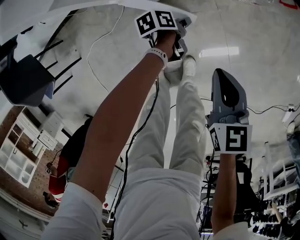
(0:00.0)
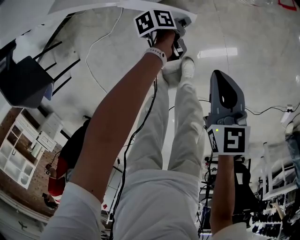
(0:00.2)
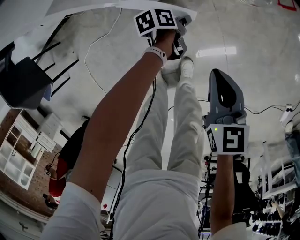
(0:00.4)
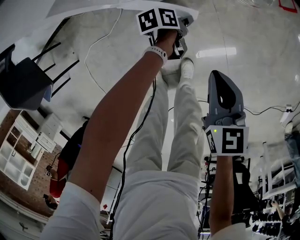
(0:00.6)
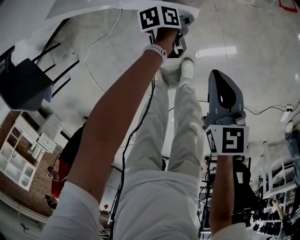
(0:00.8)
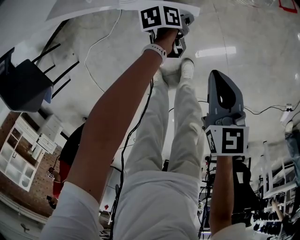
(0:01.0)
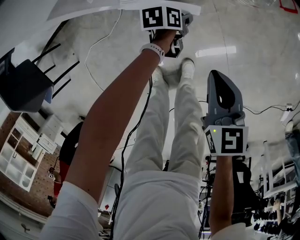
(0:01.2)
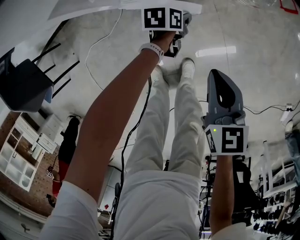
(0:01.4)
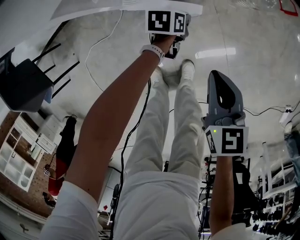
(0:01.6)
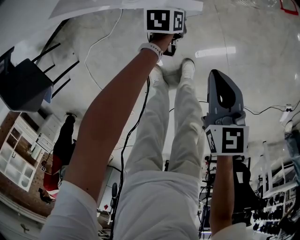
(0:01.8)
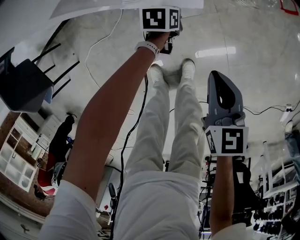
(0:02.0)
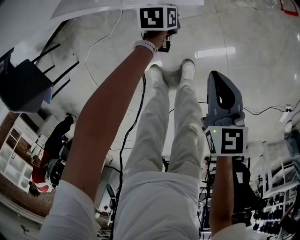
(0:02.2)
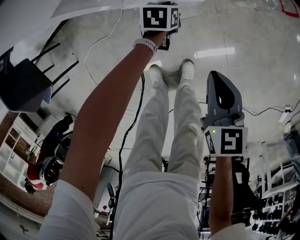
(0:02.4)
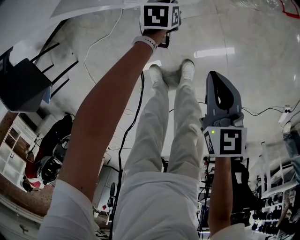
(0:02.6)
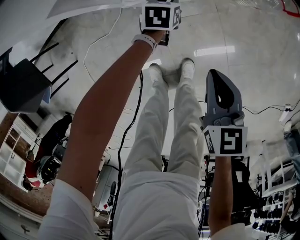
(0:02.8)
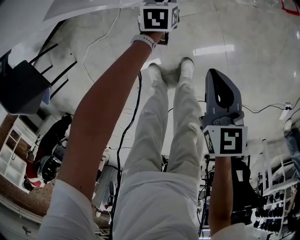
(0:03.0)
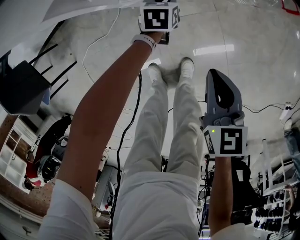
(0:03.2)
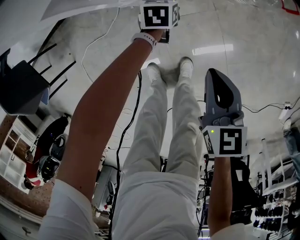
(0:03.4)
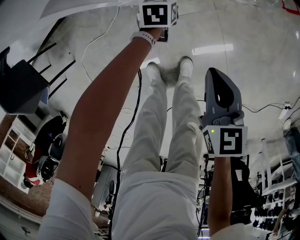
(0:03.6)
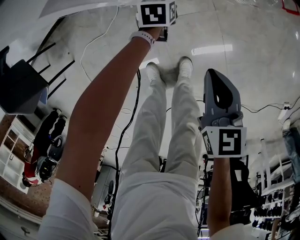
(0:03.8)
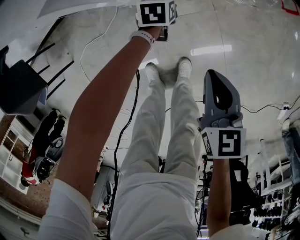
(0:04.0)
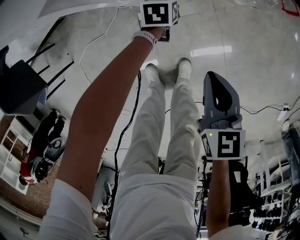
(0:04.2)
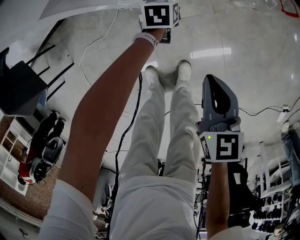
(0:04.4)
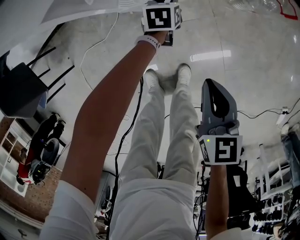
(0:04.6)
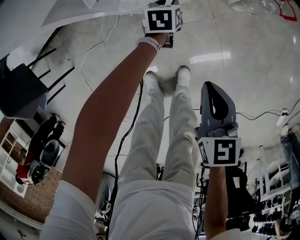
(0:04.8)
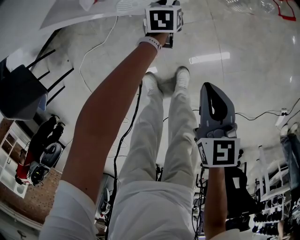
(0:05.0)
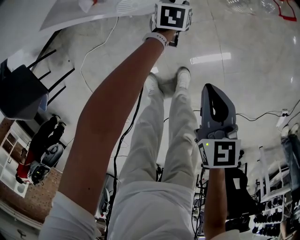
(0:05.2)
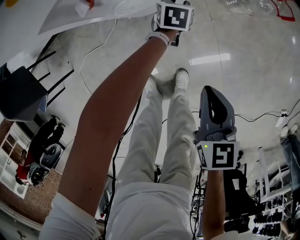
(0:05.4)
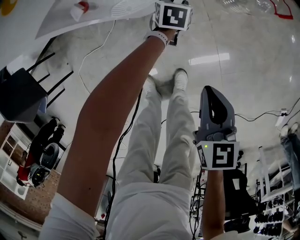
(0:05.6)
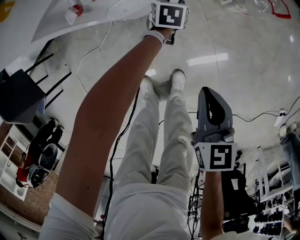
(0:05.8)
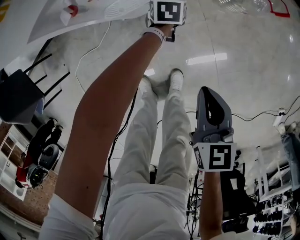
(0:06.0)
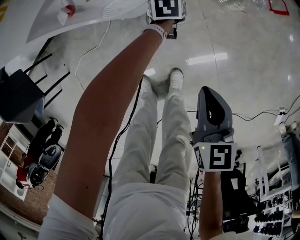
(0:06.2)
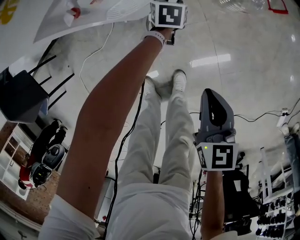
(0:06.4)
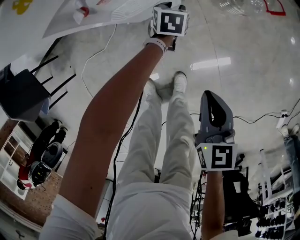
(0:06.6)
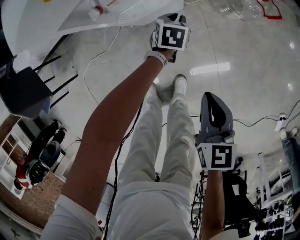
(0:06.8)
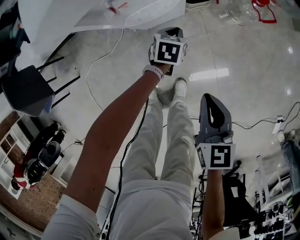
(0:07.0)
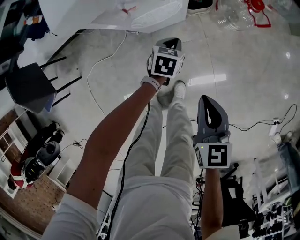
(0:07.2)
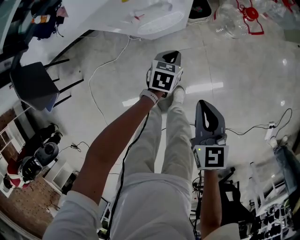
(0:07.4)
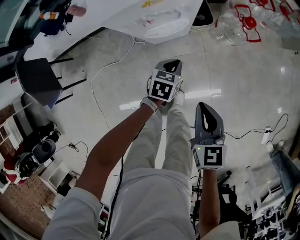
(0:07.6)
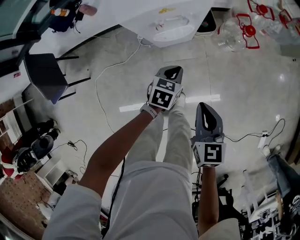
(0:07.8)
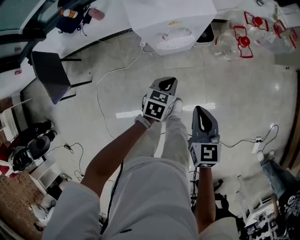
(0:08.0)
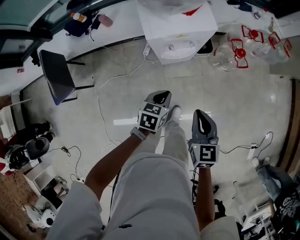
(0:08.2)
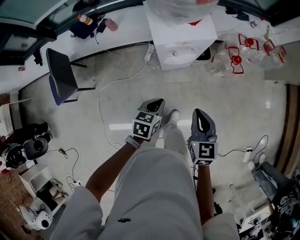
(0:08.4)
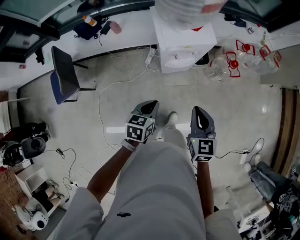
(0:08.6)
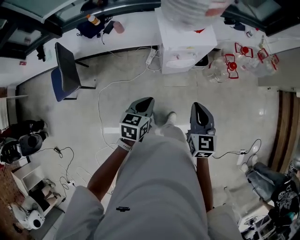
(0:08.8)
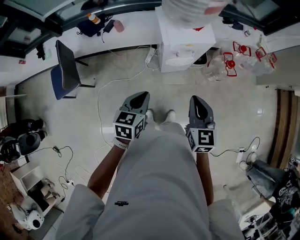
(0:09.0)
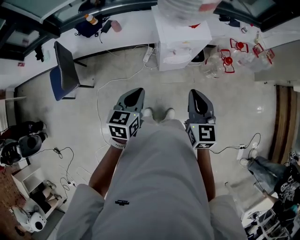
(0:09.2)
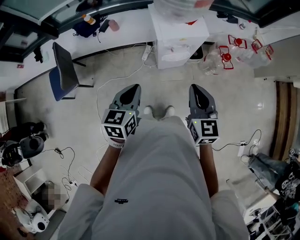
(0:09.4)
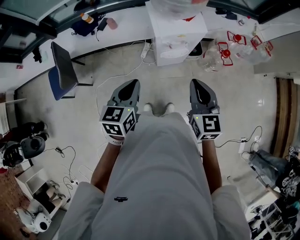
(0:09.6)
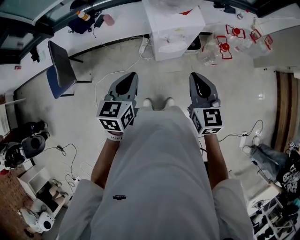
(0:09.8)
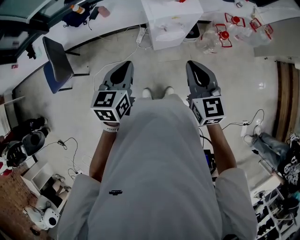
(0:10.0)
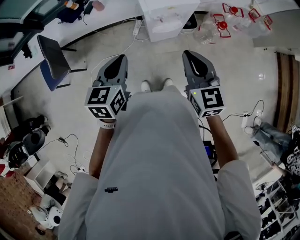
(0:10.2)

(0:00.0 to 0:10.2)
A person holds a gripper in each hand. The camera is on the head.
0:00.0 - 0:01.4: The left gripper changes place by roughly 5 cm, and turns by about 30 degrees.
0:01.4 - 0:03.0: The left gripper moves to the left and forward, roughly 10 cm, and rotates roughly 30 degrees.
0:03.0 - 0:04.4: The grippers stay close to where they were, moving slightly.
0:04.4 - 0:05.8: The left gripper heads to the right, covering roughly 5 cm.
0:05.8 - 0:07.2: The left gripper goes about 15 cm upward and backward, and closes up, while the right gripper is displaced upward by approximately 10 cm.
0:07.2 - 0:08.8: The left gripper moves upward, backward and to the left, roughly 50 cm, and changes its angle by approximately 20 degrees; the right gripper goes approximately 30 cm upward and to the left.
0:08.8 - 0:10.2: Both grippers move upward, some 10 cm.

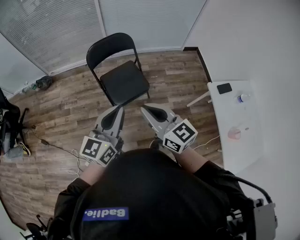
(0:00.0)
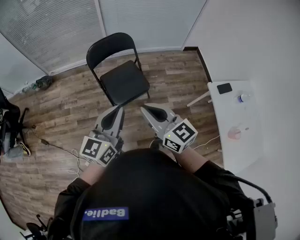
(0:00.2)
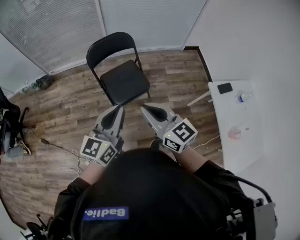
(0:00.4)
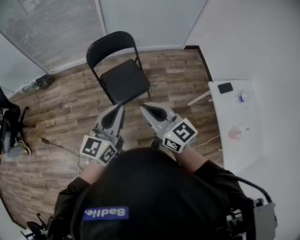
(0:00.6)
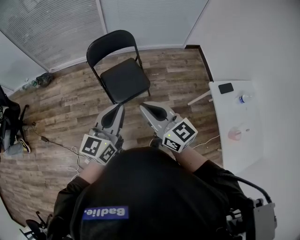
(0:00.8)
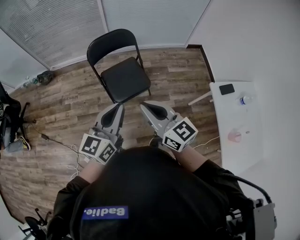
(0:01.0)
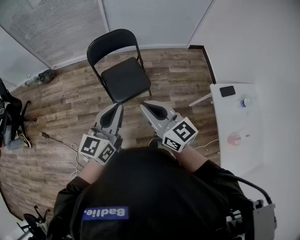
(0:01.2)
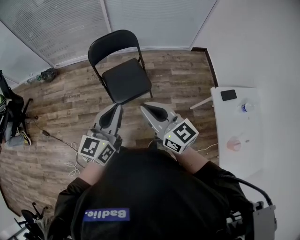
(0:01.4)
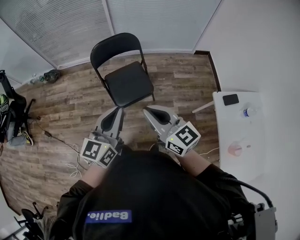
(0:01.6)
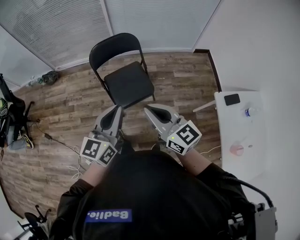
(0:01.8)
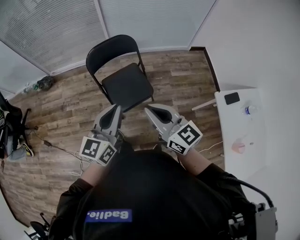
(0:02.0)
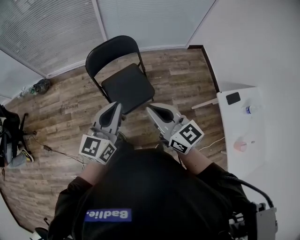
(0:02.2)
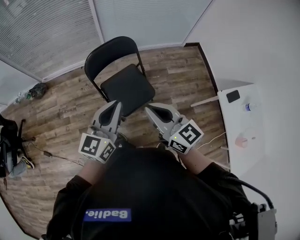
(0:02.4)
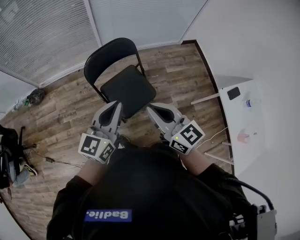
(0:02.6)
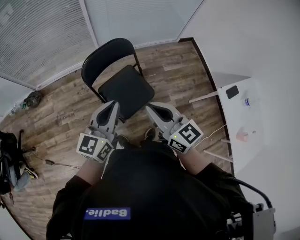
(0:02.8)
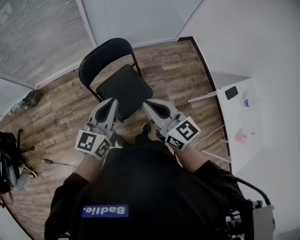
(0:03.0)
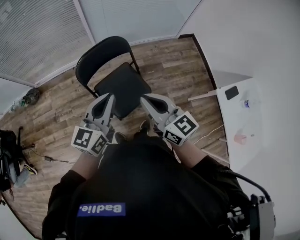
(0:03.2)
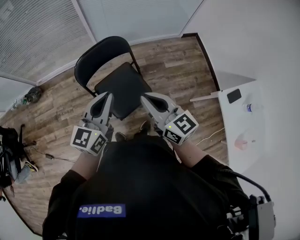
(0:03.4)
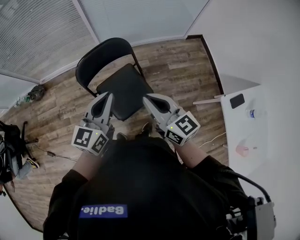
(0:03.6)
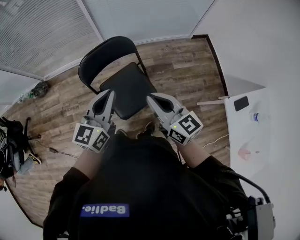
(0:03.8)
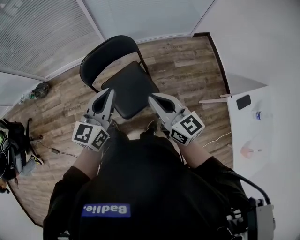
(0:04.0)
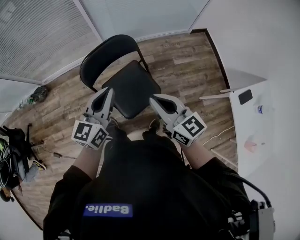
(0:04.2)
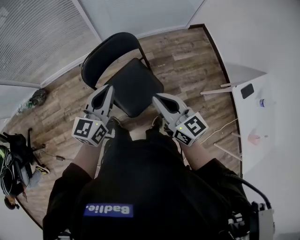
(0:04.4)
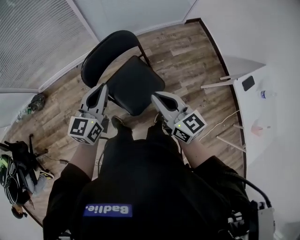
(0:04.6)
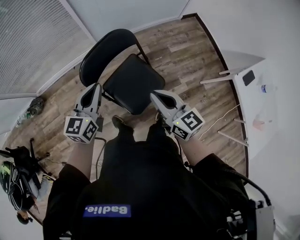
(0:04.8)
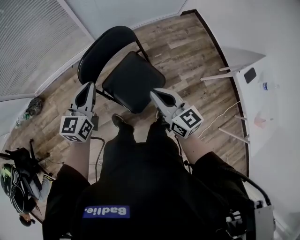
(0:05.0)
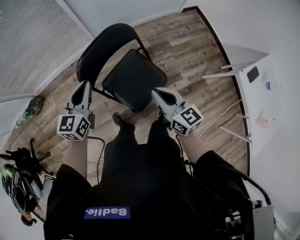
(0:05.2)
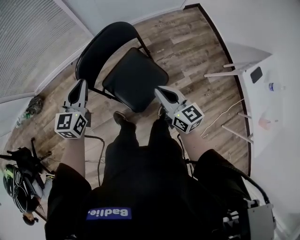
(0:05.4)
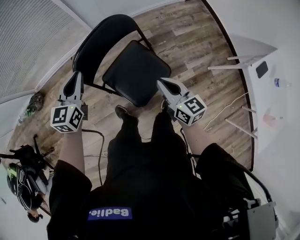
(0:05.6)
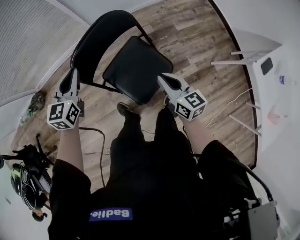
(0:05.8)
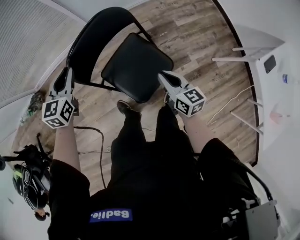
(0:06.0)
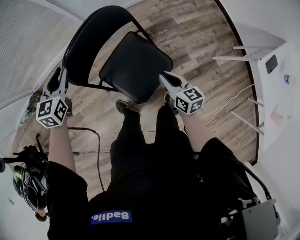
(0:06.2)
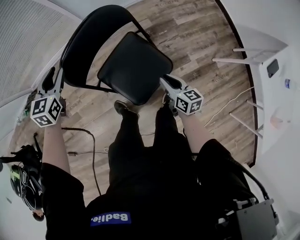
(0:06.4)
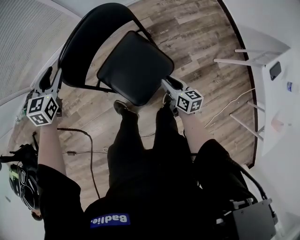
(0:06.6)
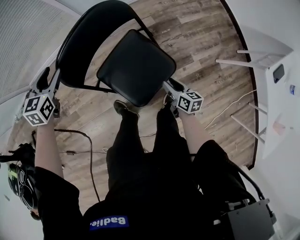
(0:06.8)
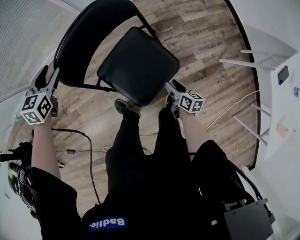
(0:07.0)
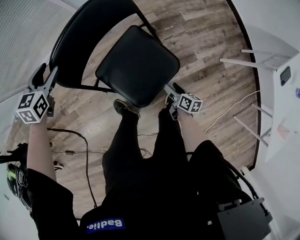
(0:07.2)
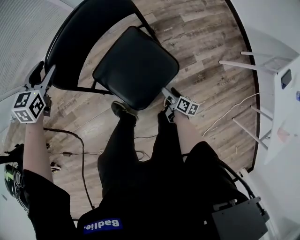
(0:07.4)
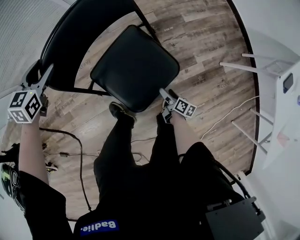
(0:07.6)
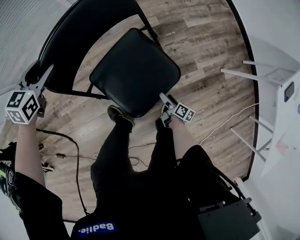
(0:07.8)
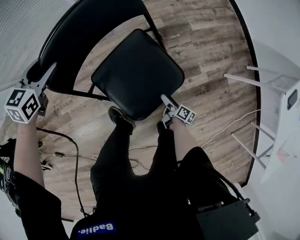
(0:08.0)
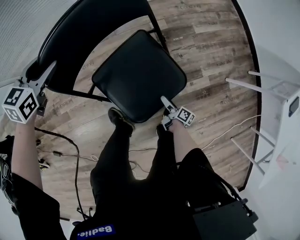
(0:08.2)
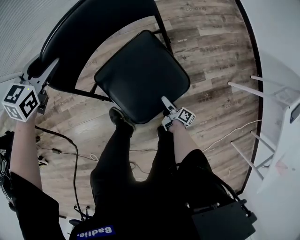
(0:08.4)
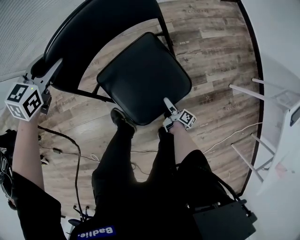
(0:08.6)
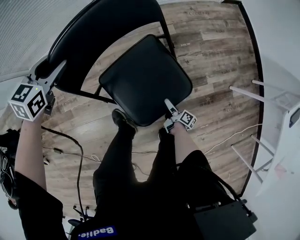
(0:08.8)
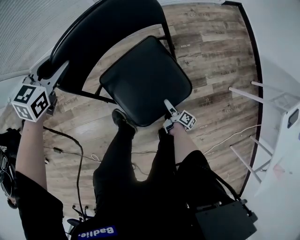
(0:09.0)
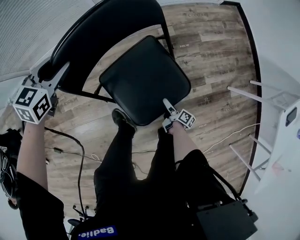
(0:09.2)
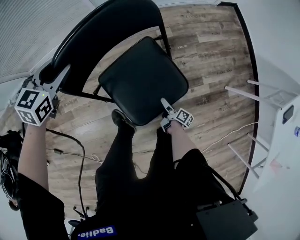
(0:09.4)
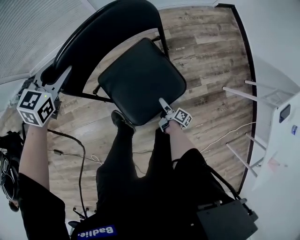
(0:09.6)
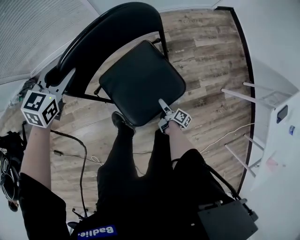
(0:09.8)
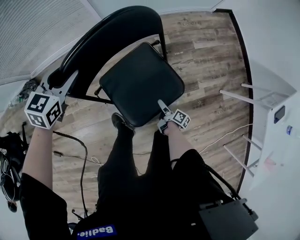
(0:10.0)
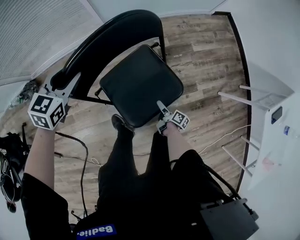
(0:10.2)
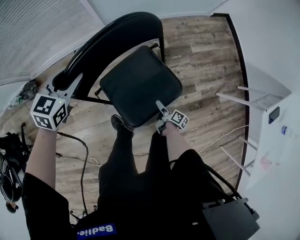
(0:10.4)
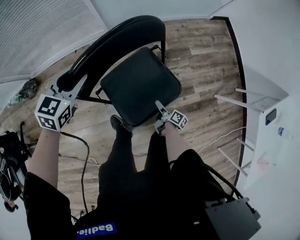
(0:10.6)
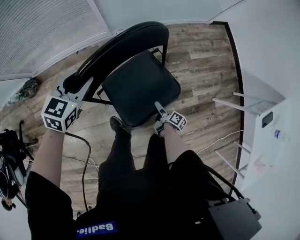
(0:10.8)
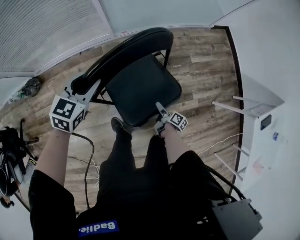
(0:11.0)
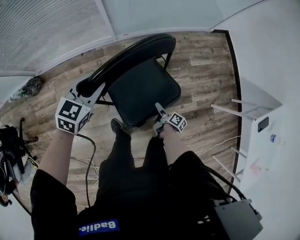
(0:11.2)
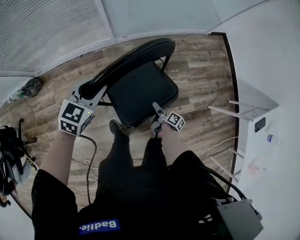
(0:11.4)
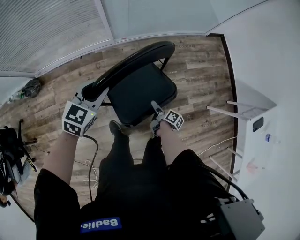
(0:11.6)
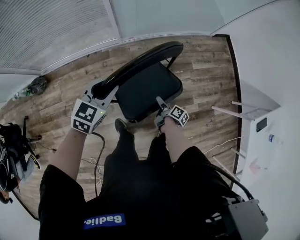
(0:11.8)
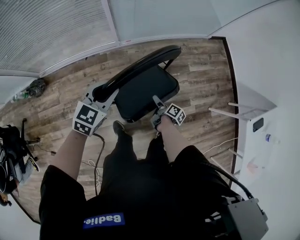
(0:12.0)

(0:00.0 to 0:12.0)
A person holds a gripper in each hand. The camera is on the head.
0:00.0 - 0:01.6: The right gripper goes roughly 5 cm to the right. Meanwhile the left gripper shifts by roughly 5 cm.
0:01.6 - 0:03.0: The two grippers go roughly 25 cm forward and to the left.
0:03.0 - 0:04.4: The grippers both shift forward and downward by approximately 10 cm. The right gripper goes to the right and returns, about 10 cm each way.
0:04.4 - 0:06.0: The right gripper is displaced downward by some 25 cm, and swivels roughly 20 degrees. Meanwhile the left gripper travels downward, forward and to the left by approximately 30 cm, and swivels some 20 degrees.
0:06.0 - 0:07.6: The left gripper moves downward and forward, some 15 cm, and opens up; the right gripper moves downward, roughly 35 cm, rolls clockwise, seen from behind, by some 40 degrees, and opens.
0:07.6 - 0:09.0: The right gripper travels downward by about 5 cm.
0:09.0 - 0:10.4: The two grippers go roughly 10 cm upward.
0:10.4 - 0:12.0: The right gripper moves upward, forward and to the left, some 20 cm. The left gripper shifts roughly 10 cm upward and backward.

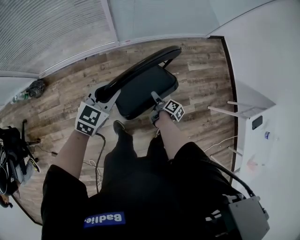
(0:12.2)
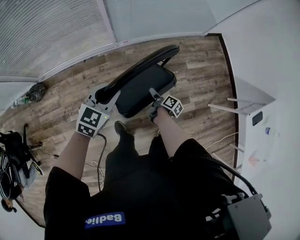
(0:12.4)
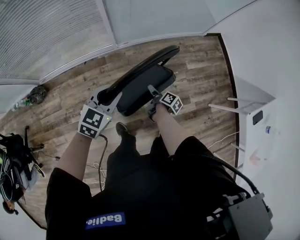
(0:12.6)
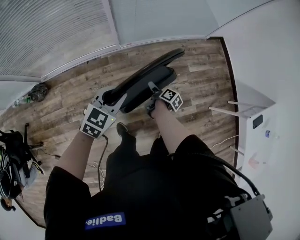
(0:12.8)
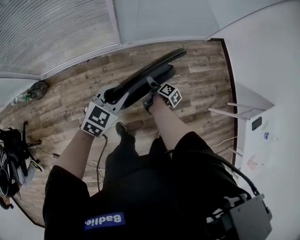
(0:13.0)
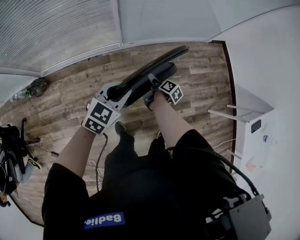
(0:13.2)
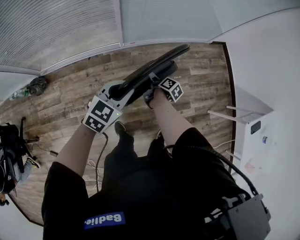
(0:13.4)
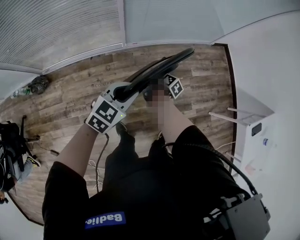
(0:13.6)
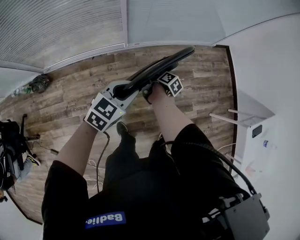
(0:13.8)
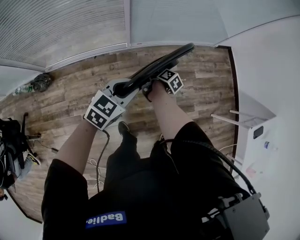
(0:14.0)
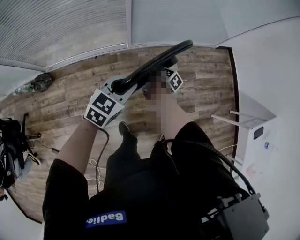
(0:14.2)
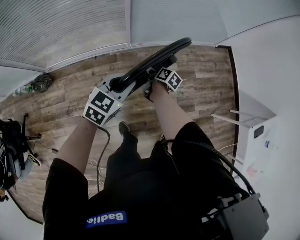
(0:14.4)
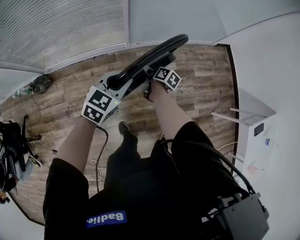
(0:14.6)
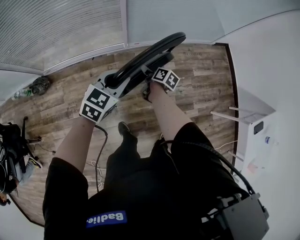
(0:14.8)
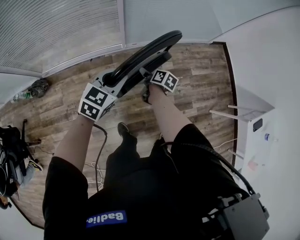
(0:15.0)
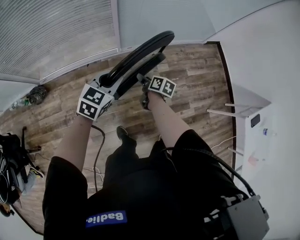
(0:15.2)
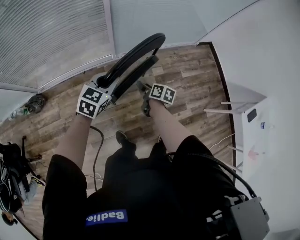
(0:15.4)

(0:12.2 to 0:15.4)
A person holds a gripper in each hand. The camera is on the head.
0:12.2 - 0:13.8: The right gripper shifts approximately 20 cm to the left, forward and upward.
0:13.8 - 0:15.4: The right gripper heads backward and upward, covering approximately 10 cm, and turns by approximately 30 degrees, while the left gripper goes approximately 5 cm to the left.
